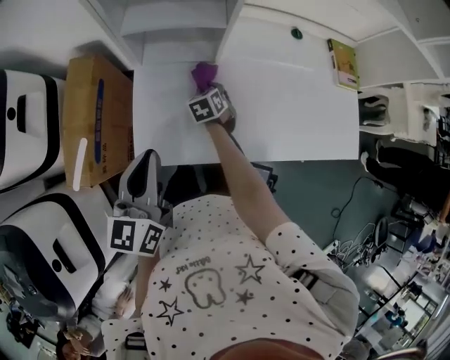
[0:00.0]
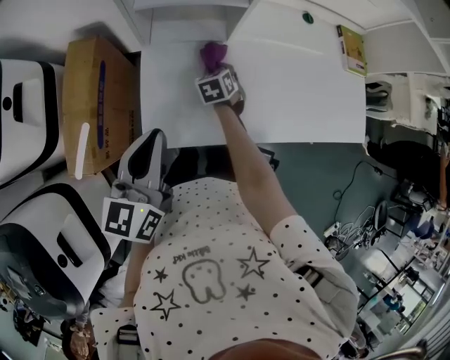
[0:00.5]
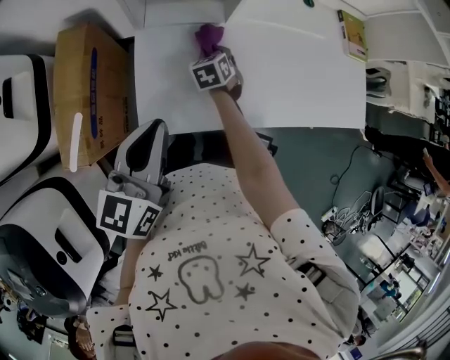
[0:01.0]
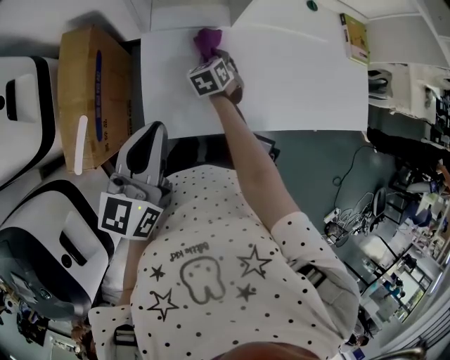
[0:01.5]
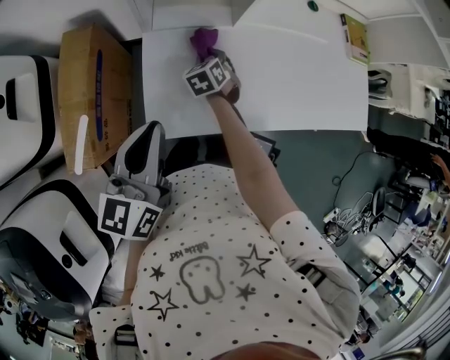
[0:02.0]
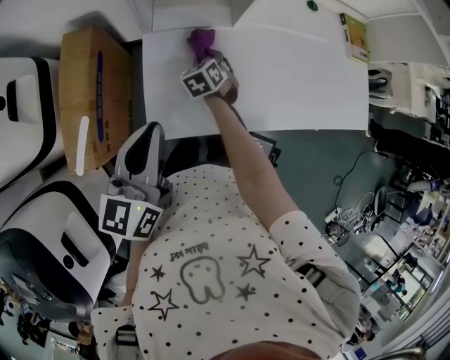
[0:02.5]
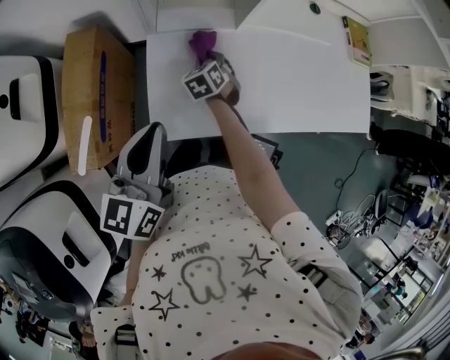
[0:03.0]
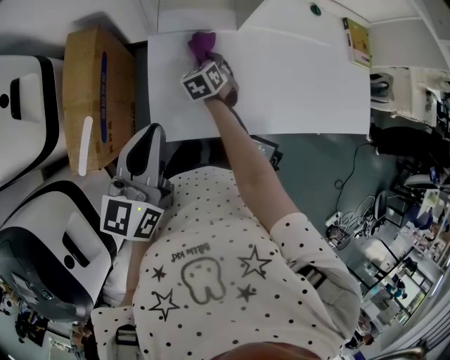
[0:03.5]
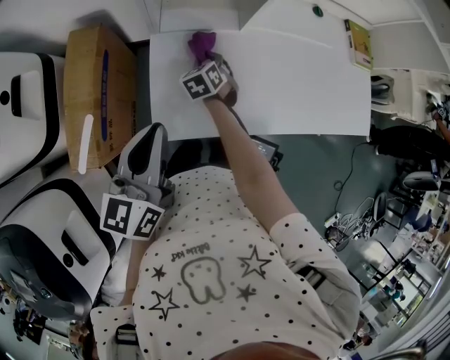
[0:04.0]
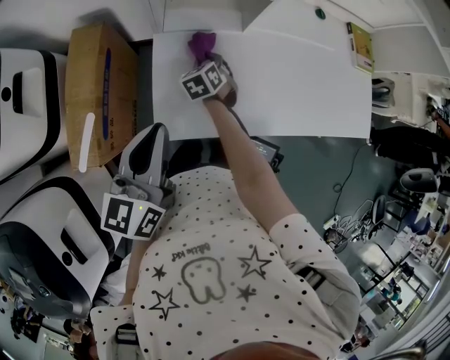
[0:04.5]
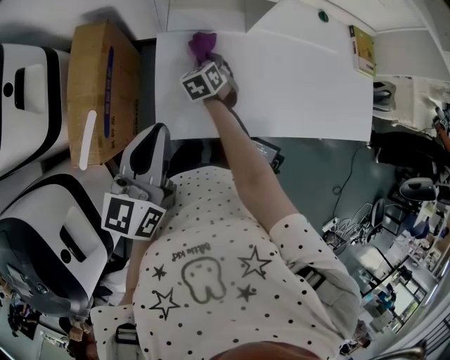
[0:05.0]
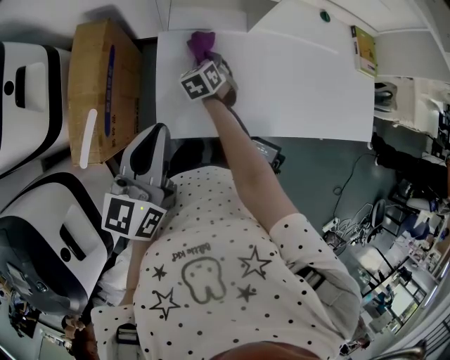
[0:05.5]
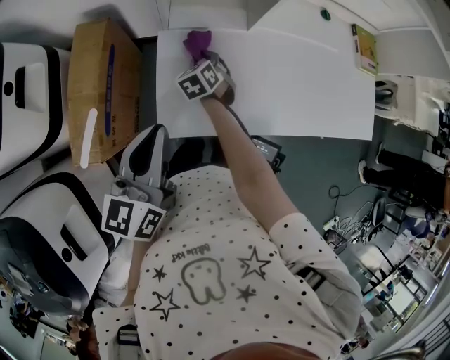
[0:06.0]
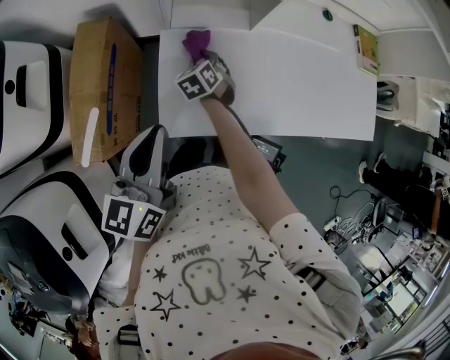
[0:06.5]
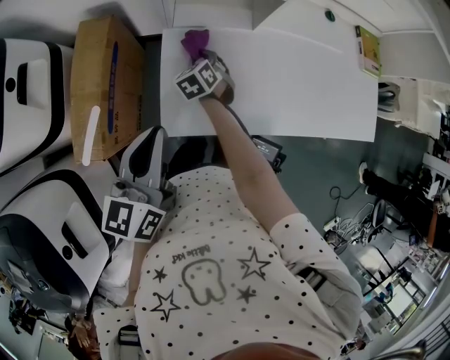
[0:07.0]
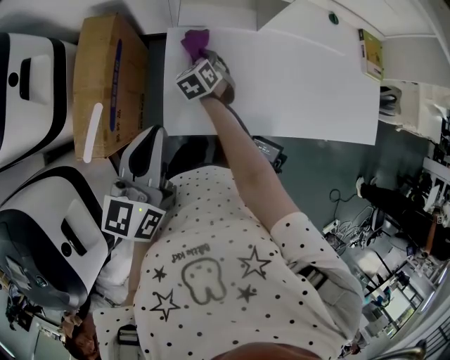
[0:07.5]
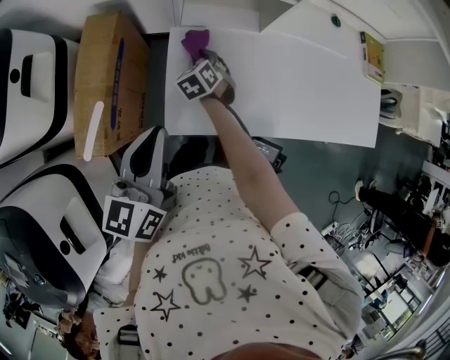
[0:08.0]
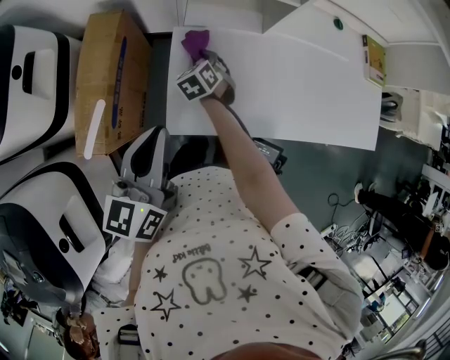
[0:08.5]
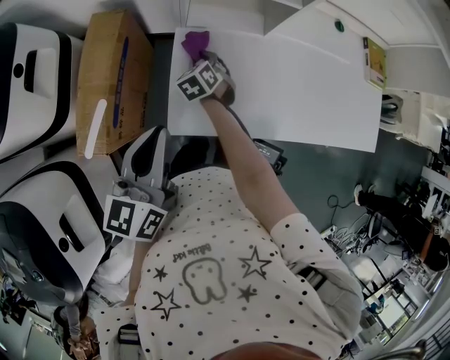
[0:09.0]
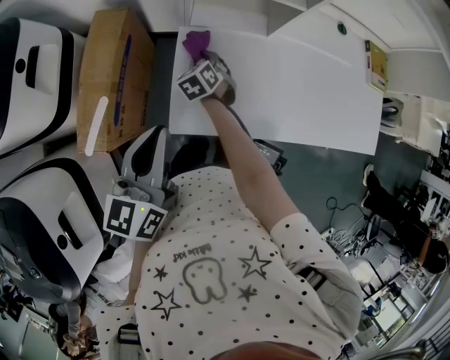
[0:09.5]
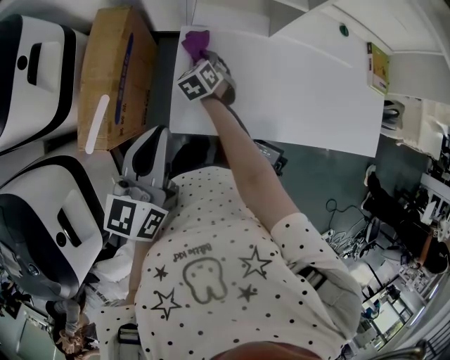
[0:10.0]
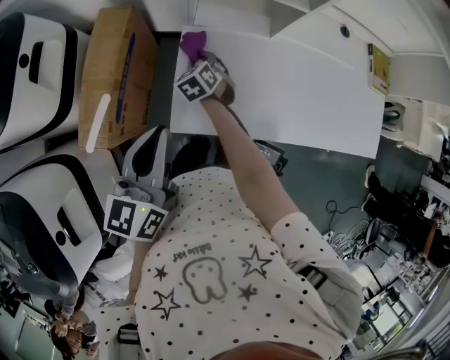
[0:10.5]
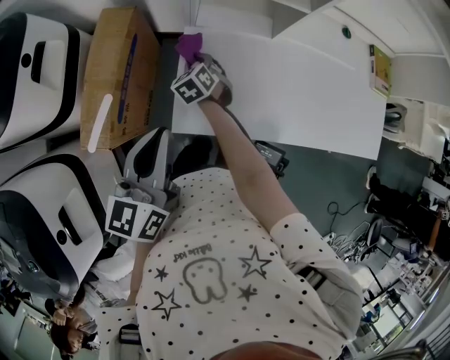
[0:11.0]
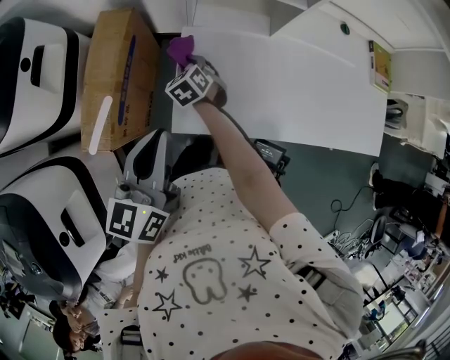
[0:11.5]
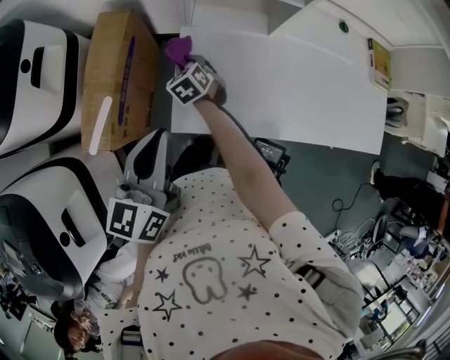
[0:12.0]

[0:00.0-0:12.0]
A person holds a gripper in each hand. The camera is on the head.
0:00.0 to 0:02.0: Both grippers move to the left, some 5 cm.
0:02.0 to 0:06.0: The grippers make only small movements.
0:06.0 to 0:08.0: There are only small adjustments of the grippers.
0:08.0 to 0:10.0: The grippers make only small movements.
0:10.0 to 0:12.0: The grippers stay close to where they were, moving slightly.

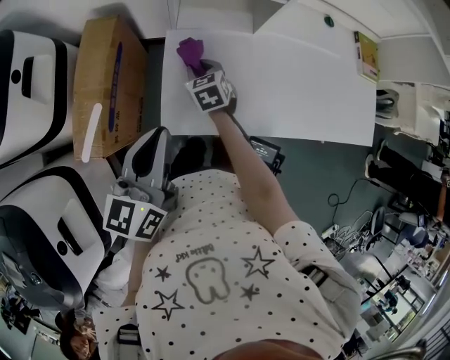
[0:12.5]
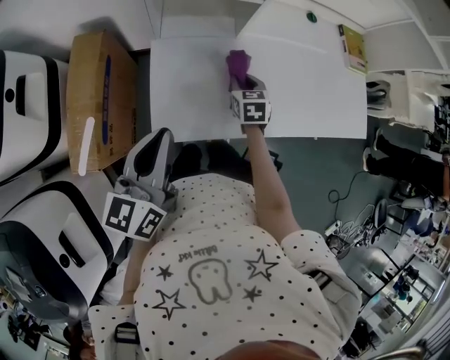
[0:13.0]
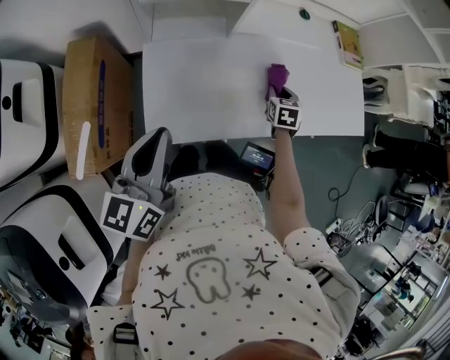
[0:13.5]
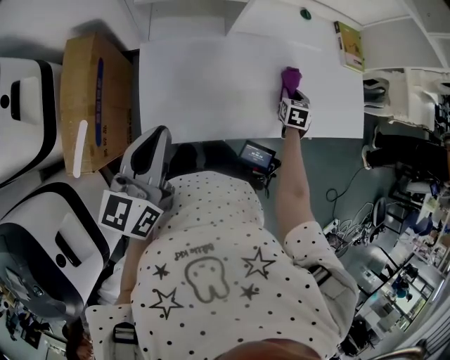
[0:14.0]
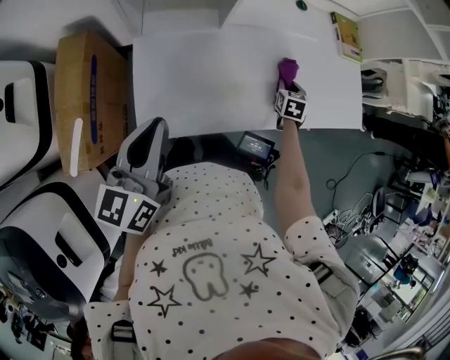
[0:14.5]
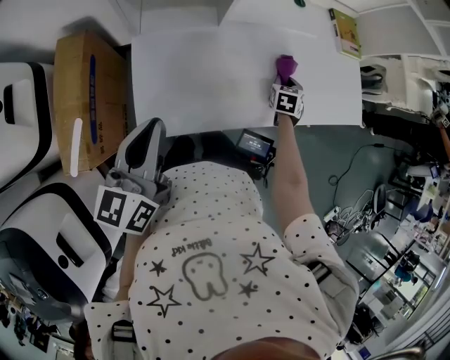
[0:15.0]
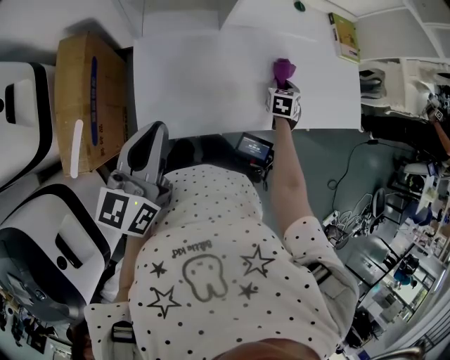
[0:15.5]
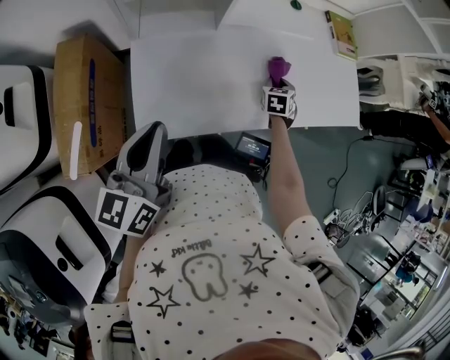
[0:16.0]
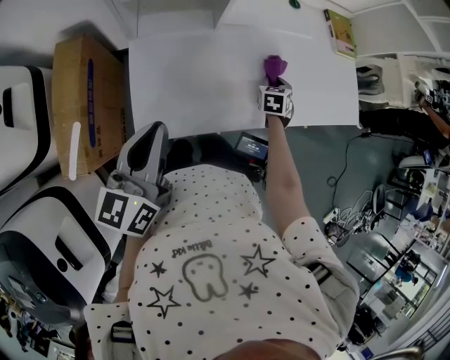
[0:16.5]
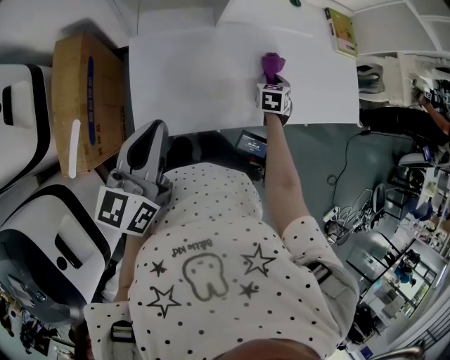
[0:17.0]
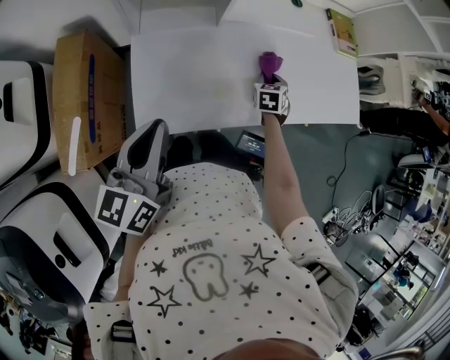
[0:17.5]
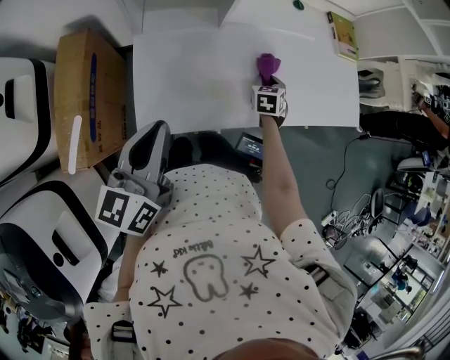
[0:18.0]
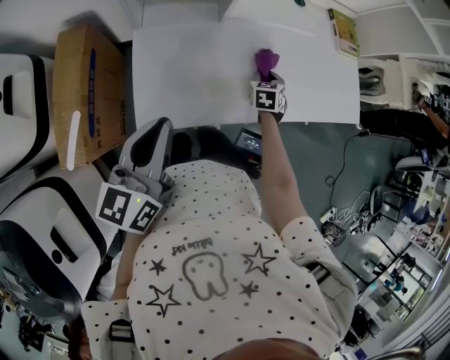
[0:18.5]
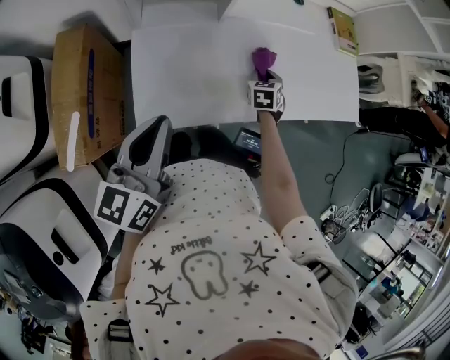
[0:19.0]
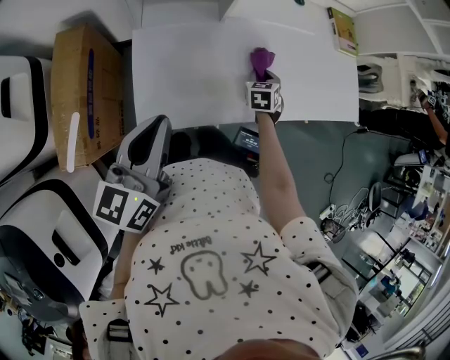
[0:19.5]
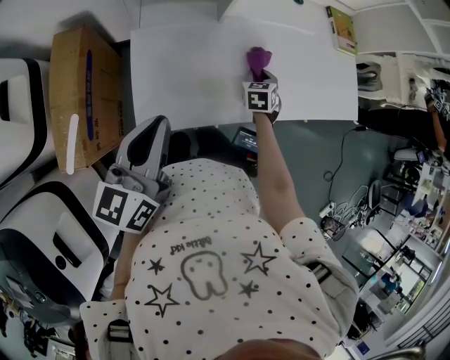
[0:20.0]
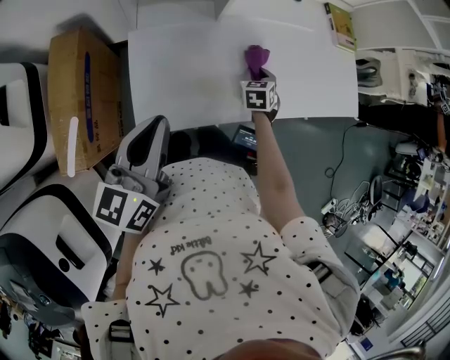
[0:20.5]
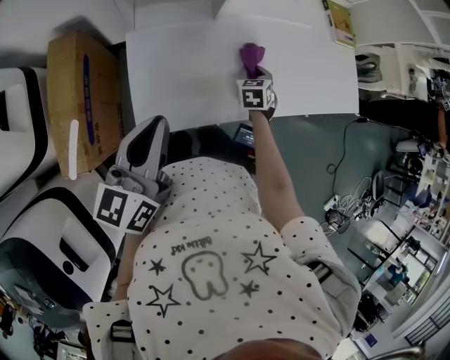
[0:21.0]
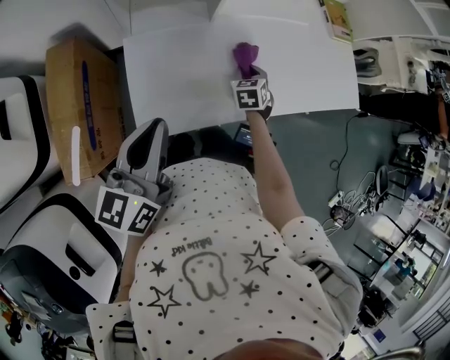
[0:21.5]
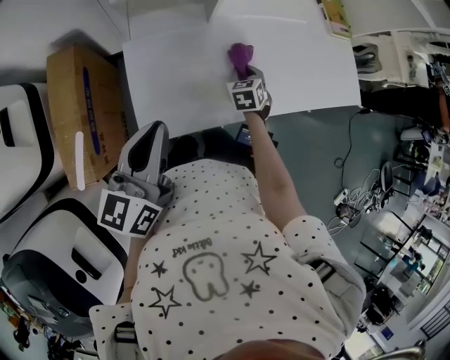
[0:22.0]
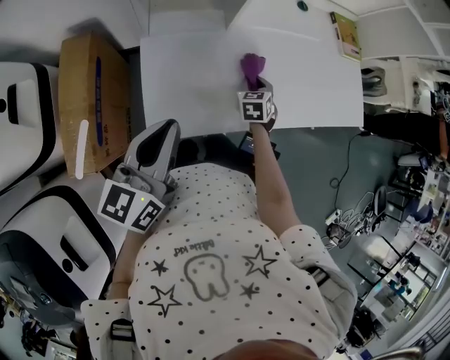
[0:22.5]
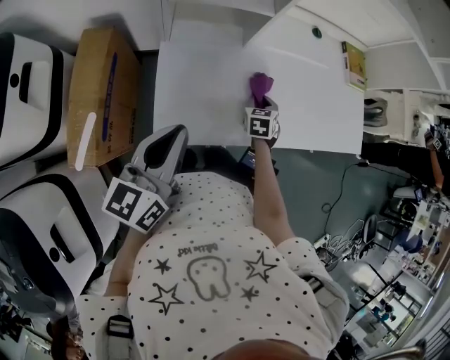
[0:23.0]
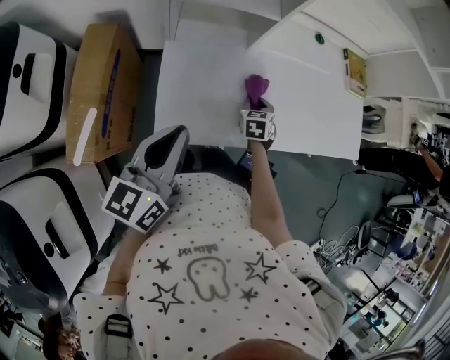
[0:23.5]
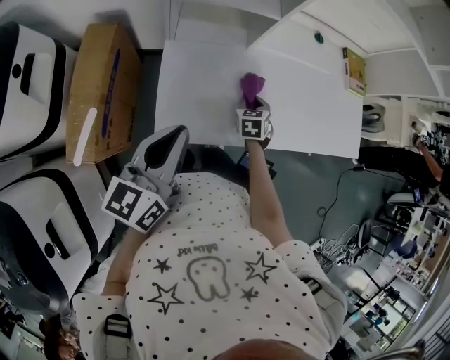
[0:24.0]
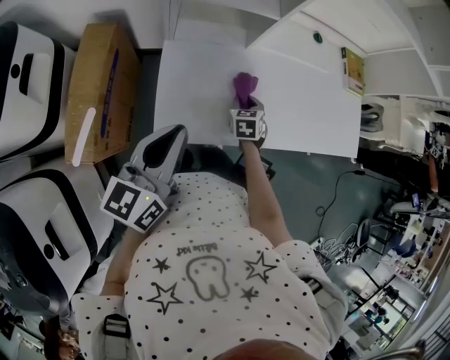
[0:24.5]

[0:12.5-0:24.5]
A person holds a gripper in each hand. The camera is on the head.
0:12.5 to 0:14.5: The left gripper moves some 5 cm. Meanwhile the right gripper changes place by approximately 40 cm, and turns by approximately 40 degrees.
0:14.5 to 0:16.5: The grippers make only small movements.
0:16.5 to 0:18.5: The grippers make only small movements.
0:18.5 to 0:20.5: The grippers stay close to where they were, moving slightly.
0:20.5 to 0:22.5: The grippers move only a little.
0:22.5 to 0:24.5: The right gripper is displaced to the left by some 5 cm.

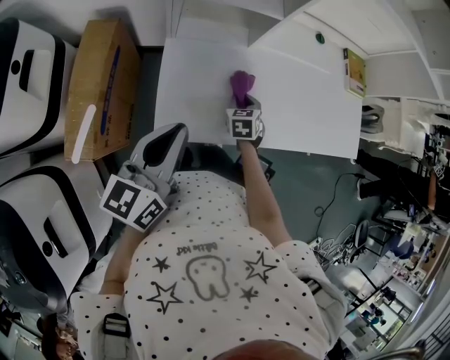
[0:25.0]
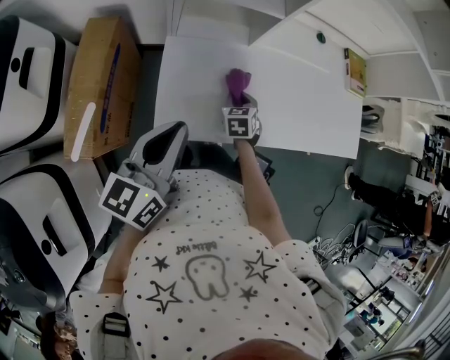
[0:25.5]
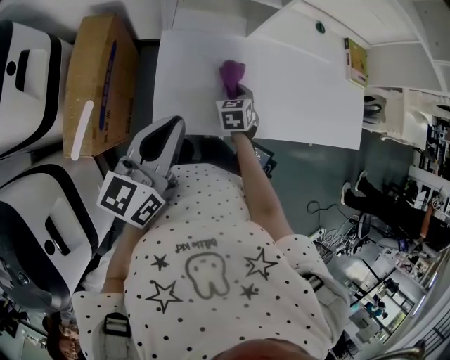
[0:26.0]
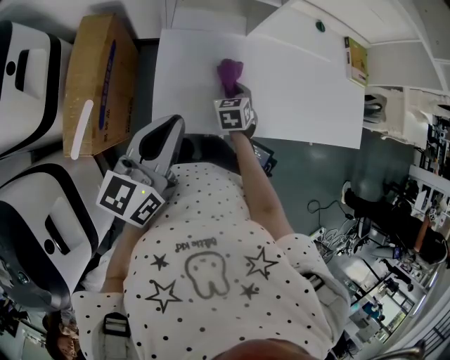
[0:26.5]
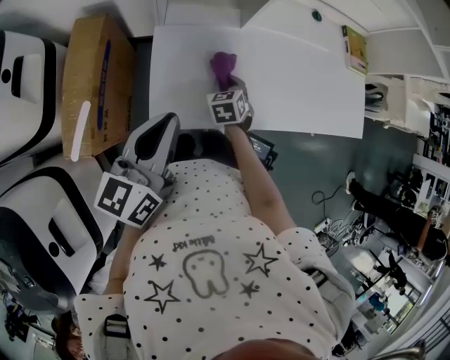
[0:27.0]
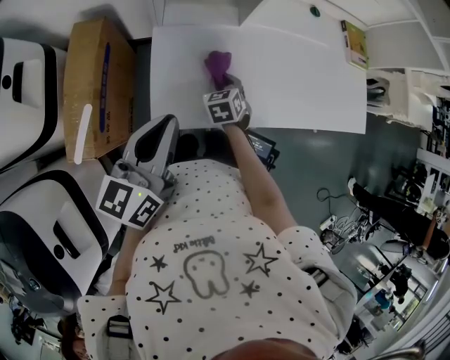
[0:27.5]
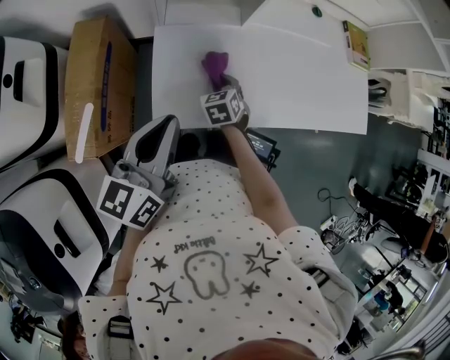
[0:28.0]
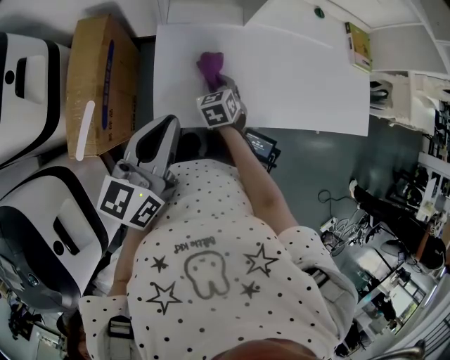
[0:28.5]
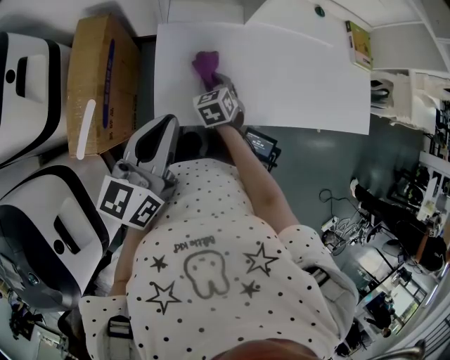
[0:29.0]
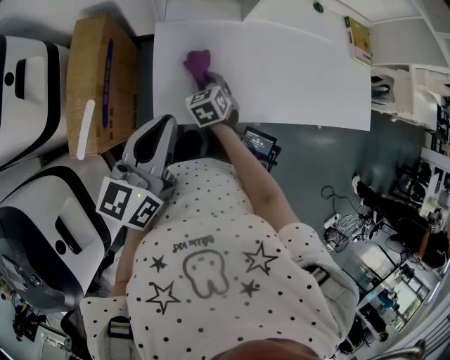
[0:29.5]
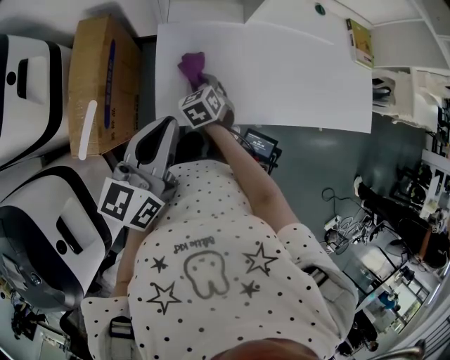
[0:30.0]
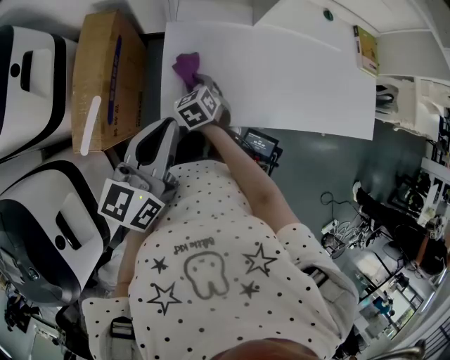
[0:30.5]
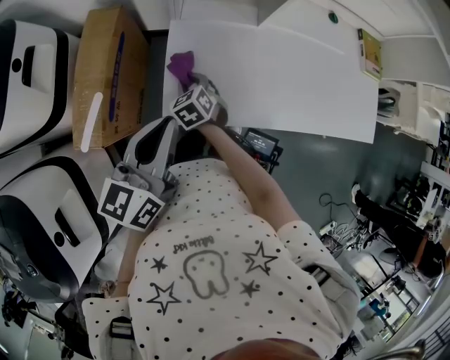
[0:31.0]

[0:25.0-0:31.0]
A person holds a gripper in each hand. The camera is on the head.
0:25.0 to 0:27.0: The grippers stay close to where they were, moving slightly.
0:27.0 to 0:29.0: The right gripper goes roughly 5 cm to the left.
0:29.0 to 0:31.0: The right gripper moves to the left, about 10 cm.
